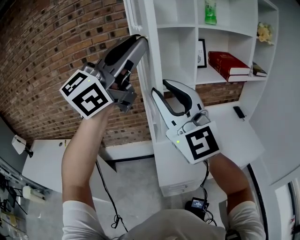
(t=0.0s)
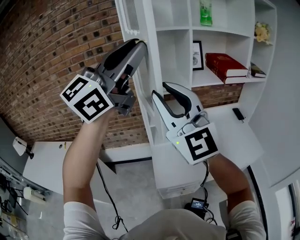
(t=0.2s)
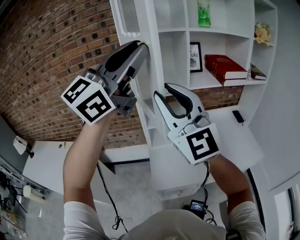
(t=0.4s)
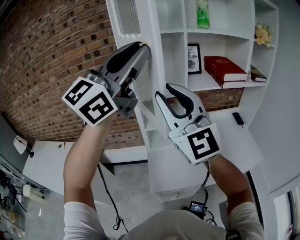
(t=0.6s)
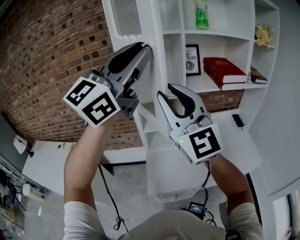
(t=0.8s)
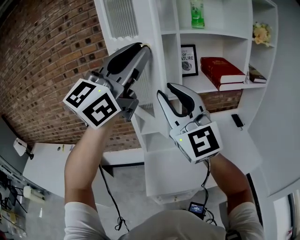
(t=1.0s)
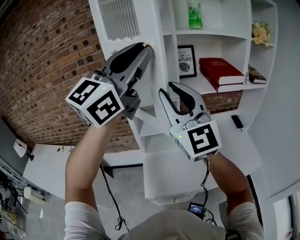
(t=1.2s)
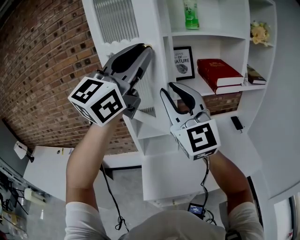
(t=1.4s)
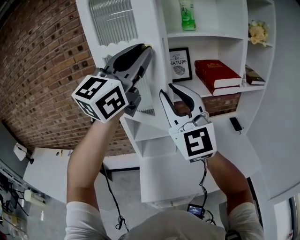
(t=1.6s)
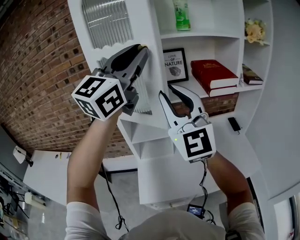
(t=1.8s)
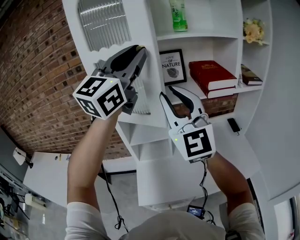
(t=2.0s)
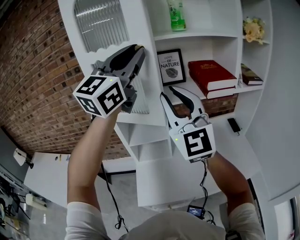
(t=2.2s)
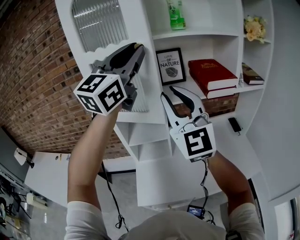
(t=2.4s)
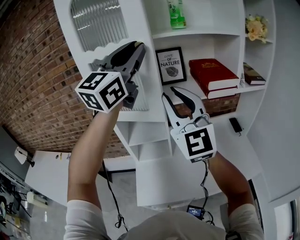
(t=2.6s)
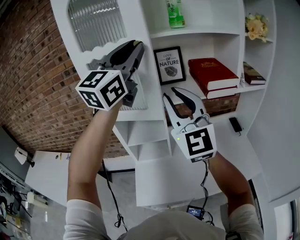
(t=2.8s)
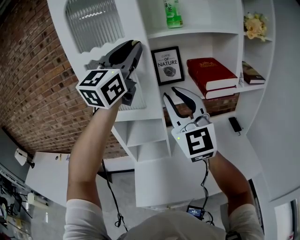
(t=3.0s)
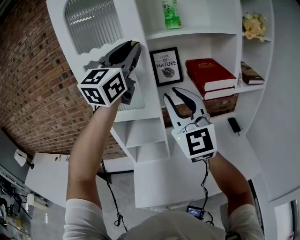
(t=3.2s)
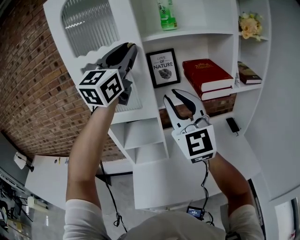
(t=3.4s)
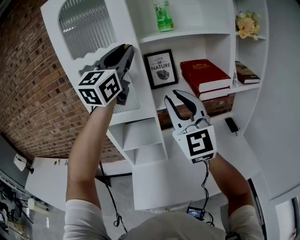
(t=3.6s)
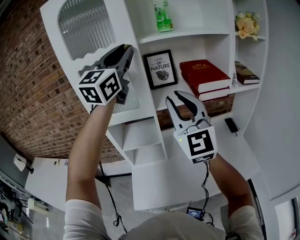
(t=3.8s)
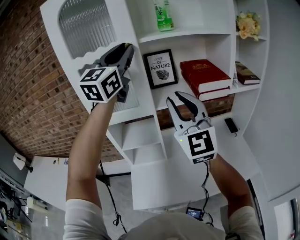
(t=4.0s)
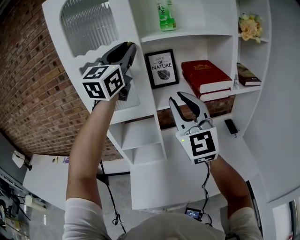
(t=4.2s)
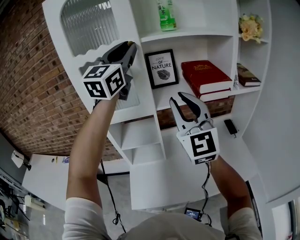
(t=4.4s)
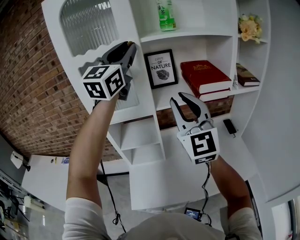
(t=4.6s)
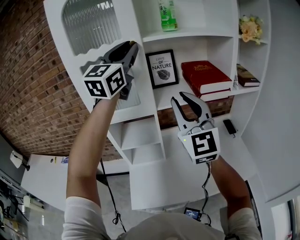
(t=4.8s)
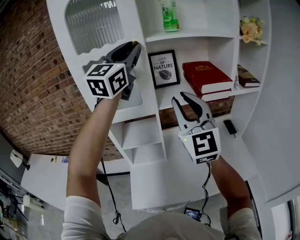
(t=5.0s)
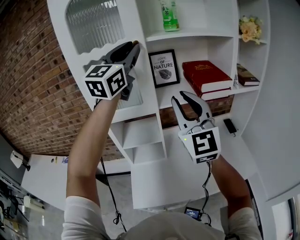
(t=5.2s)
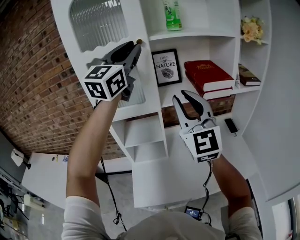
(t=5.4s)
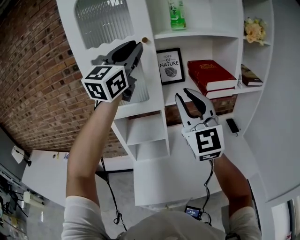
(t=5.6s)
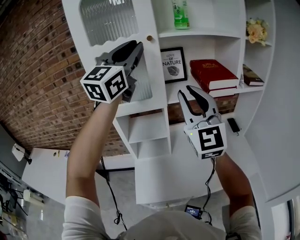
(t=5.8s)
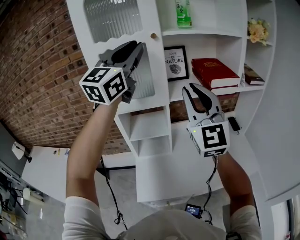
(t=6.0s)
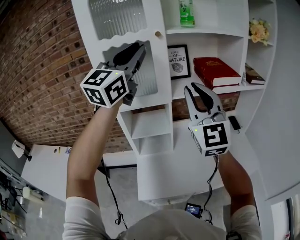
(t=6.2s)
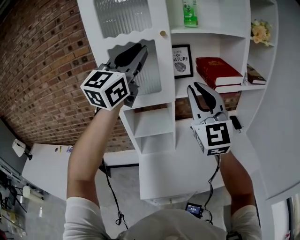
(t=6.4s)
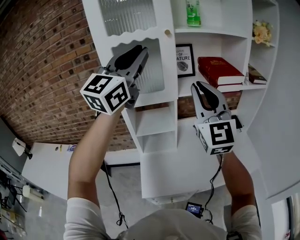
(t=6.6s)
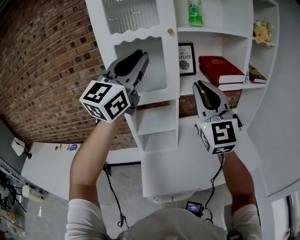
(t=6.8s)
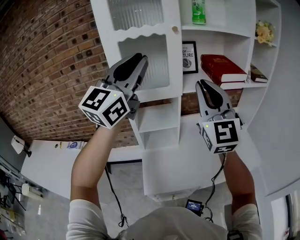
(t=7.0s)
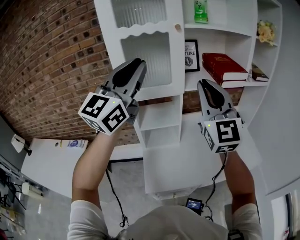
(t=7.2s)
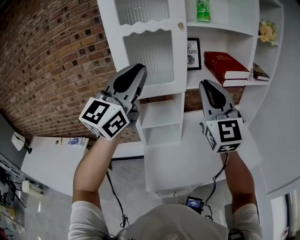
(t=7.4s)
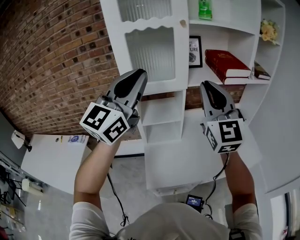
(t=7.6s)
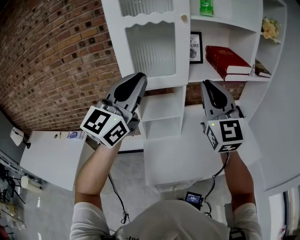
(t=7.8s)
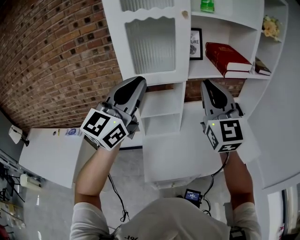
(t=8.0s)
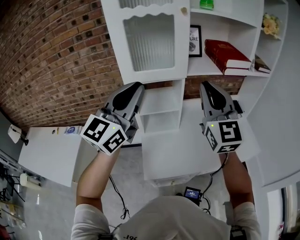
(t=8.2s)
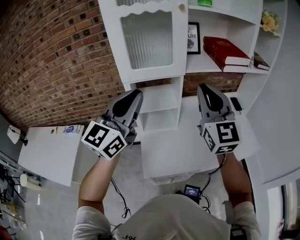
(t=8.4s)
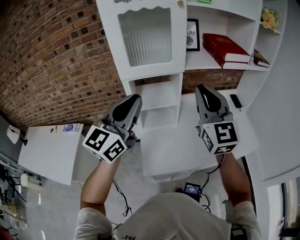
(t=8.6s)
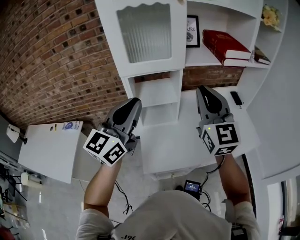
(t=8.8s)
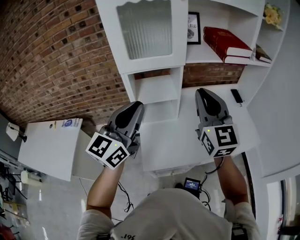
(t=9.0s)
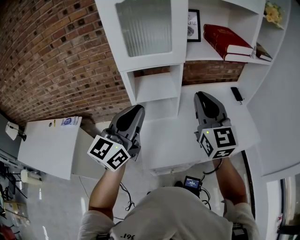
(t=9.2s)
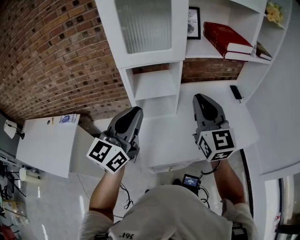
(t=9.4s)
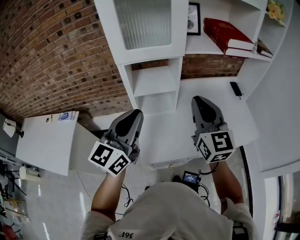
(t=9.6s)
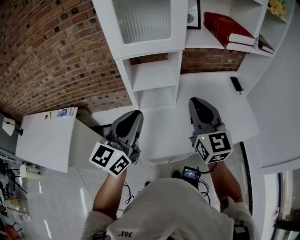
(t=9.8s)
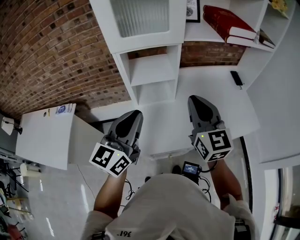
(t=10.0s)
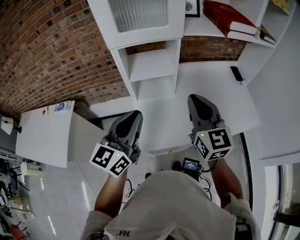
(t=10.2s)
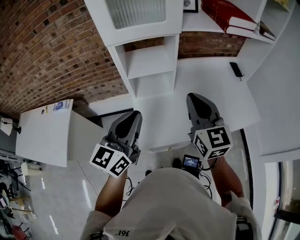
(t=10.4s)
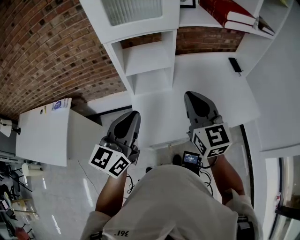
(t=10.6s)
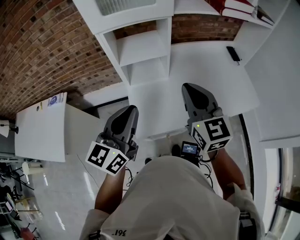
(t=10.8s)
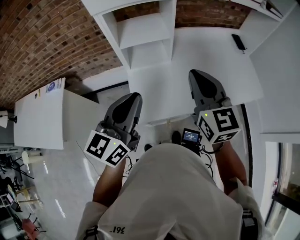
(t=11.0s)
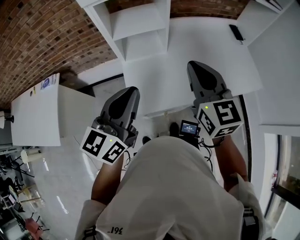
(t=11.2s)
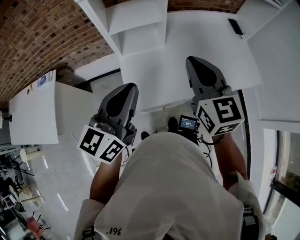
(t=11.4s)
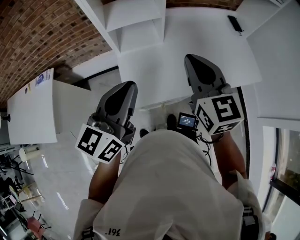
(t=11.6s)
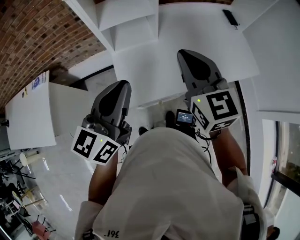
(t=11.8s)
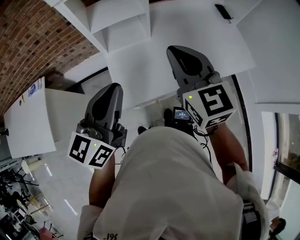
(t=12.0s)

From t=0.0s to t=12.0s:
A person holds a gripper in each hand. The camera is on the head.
From t=0.0s to t=1.6s: The grippers both shift to the right and forward by roughly 20 cm.
From t=1.6s to t=3.0s: The right gripper goes some 10 cm forward and to the right, while the left gripper moves forward, some 10 cm.
From t=3.0s to t=4.4s: The left gripper shifts about 5 cm forward.
From t=4.4s to t=6.0s: The left gripper moves backward, some 10 cm.
From t=6.0s to t=7.6s: The left gripper travels backward, downward and to the left by some 20 cm. Meanwhile the right gripper changes place by roughly 5 cm.
From t=7.6s to t=9.0s: The right gripper heads downward, covering approximately 10 cm. The left gripper is displaced downward by approximately 15 cm.
From t=9.0s to t=10.4s: The grippers both shift downward by approximately 10 cm.
From t=10.4s to t=12.0s: The left gripper shifts by roughly 5 cm.

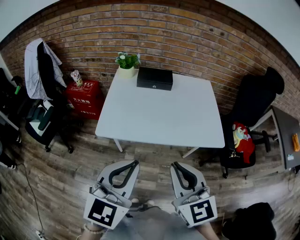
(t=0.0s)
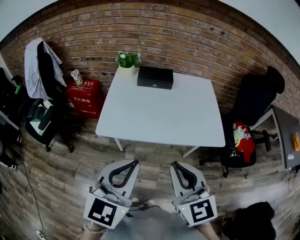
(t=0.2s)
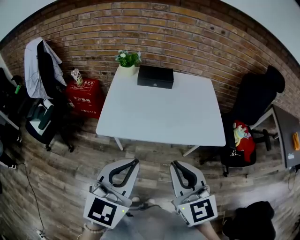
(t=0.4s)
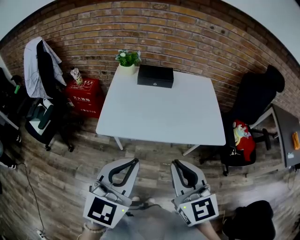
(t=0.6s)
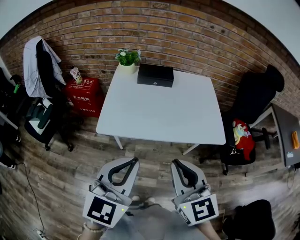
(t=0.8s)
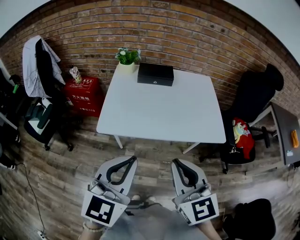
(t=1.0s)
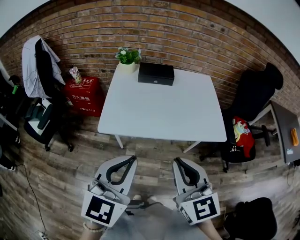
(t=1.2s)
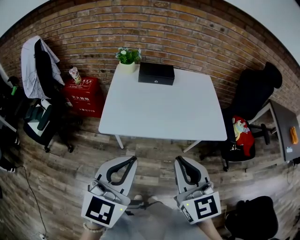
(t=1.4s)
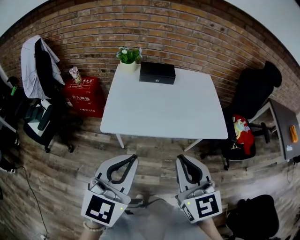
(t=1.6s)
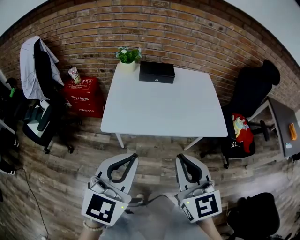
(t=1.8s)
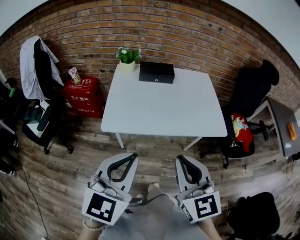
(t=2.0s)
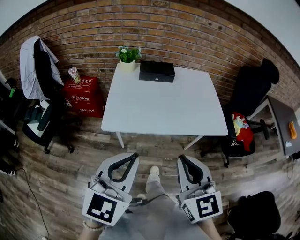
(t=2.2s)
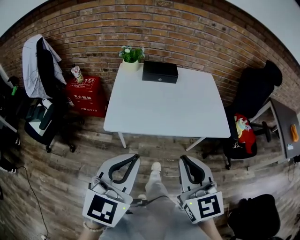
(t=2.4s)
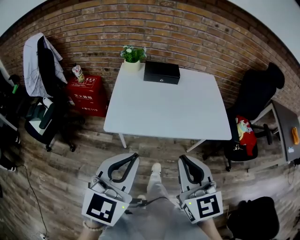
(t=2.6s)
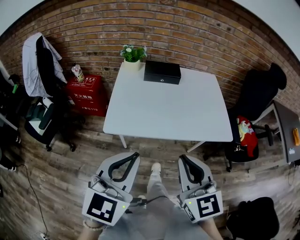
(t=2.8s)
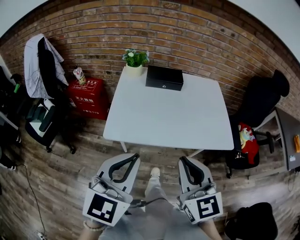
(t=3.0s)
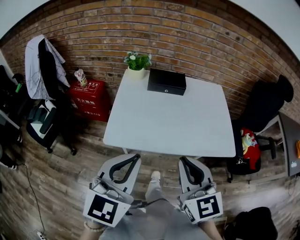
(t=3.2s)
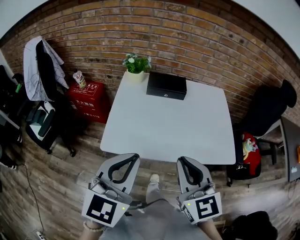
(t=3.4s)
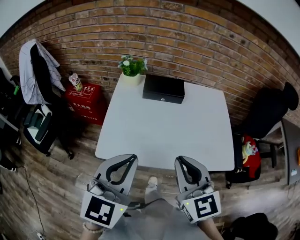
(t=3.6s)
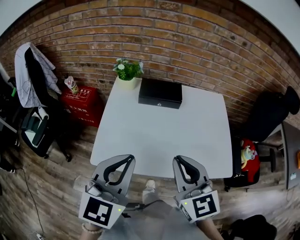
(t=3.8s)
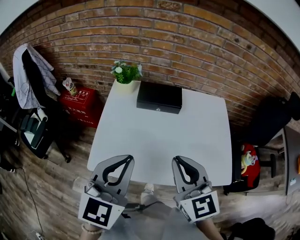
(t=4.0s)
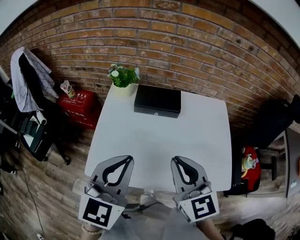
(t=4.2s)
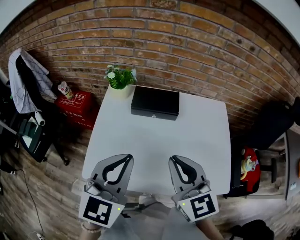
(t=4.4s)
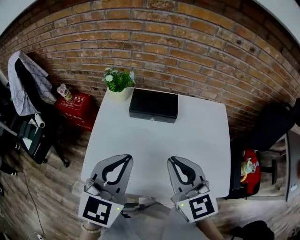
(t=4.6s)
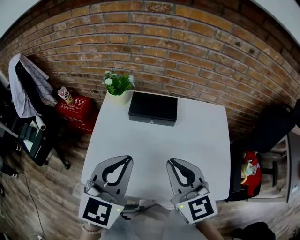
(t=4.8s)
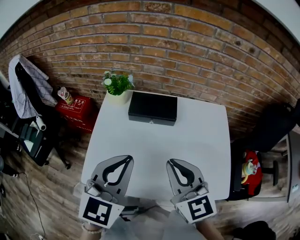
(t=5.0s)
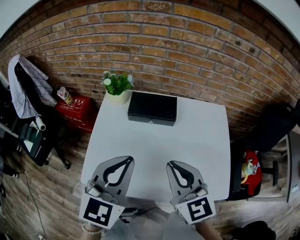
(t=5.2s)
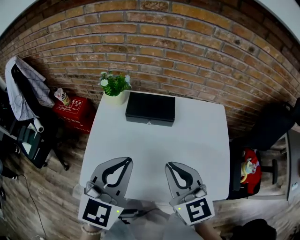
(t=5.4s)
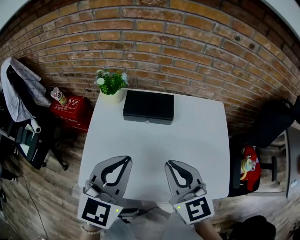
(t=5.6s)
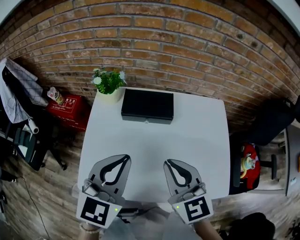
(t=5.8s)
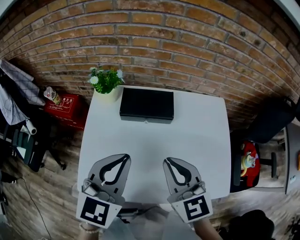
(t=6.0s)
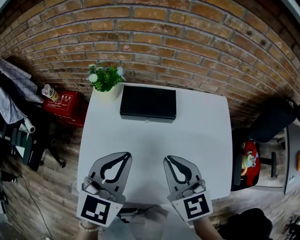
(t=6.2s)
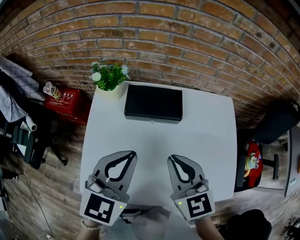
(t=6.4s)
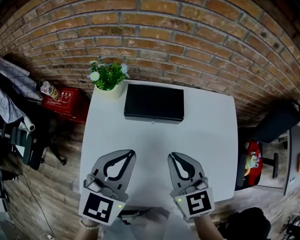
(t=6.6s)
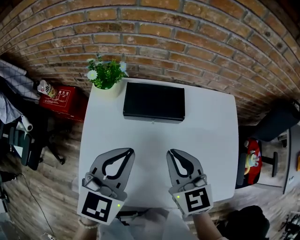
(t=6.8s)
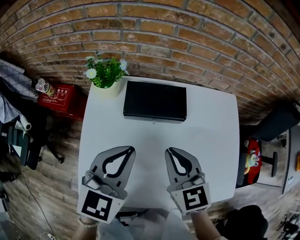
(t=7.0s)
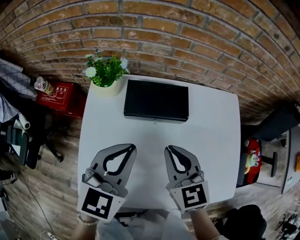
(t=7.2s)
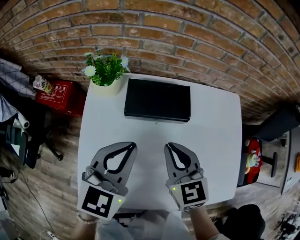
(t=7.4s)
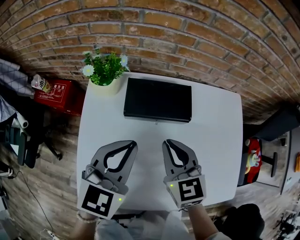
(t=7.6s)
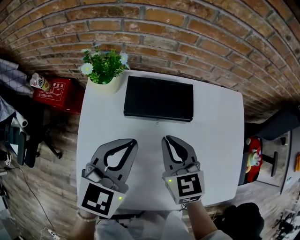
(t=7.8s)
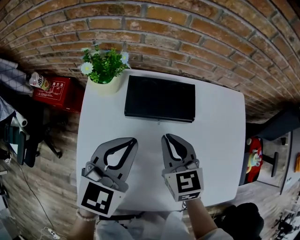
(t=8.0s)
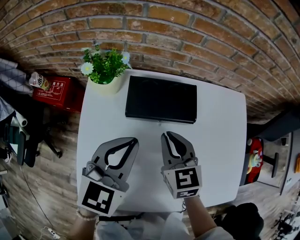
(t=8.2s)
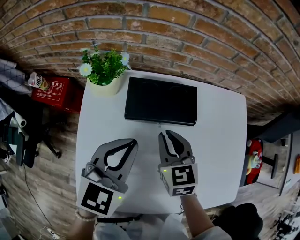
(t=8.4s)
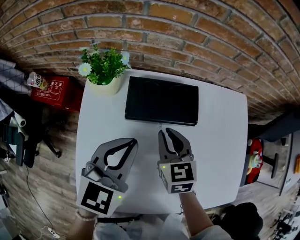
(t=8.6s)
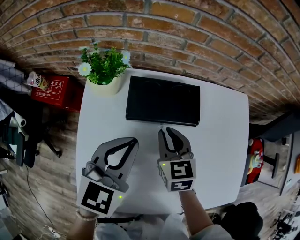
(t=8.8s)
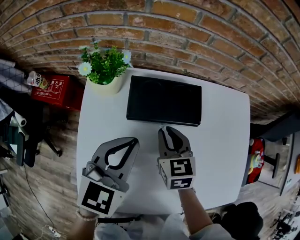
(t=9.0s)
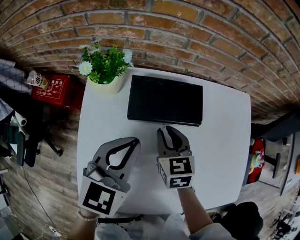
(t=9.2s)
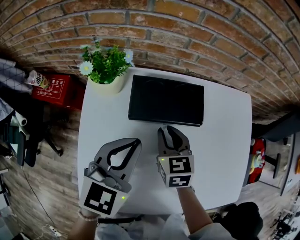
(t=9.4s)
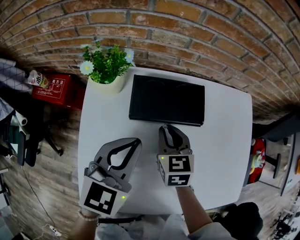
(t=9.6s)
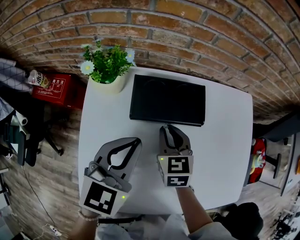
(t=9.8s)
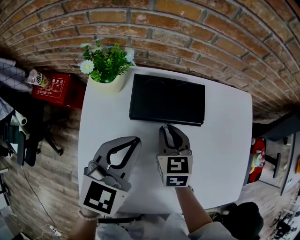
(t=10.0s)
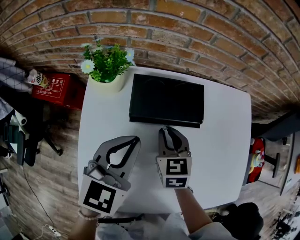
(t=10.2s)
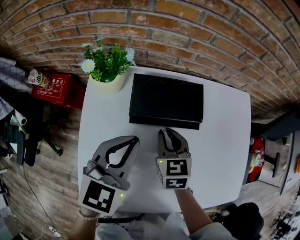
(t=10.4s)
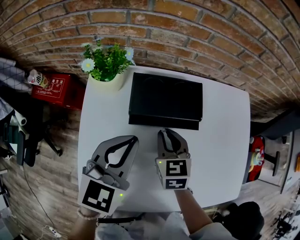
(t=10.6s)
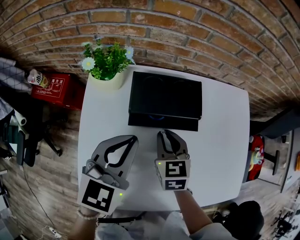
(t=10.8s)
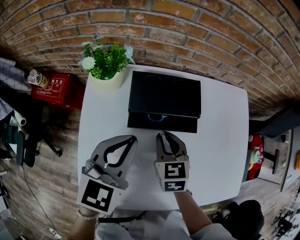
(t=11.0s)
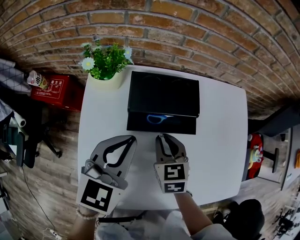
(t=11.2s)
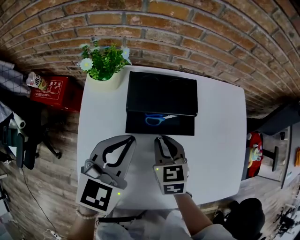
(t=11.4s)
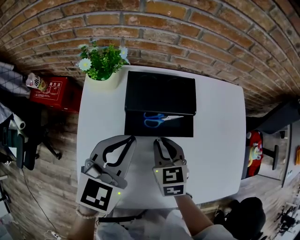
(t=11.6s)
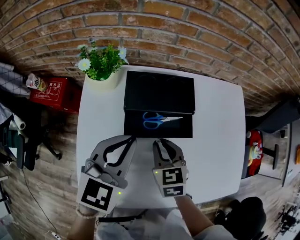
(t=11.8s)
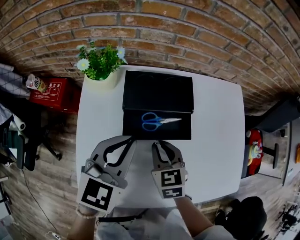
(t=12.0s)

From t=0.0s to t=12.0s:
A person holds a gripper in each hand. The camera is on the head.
From t=0.0s to t=1.6s: The left gripper moves to the left, approximately 5 cm.
From t=1.6s to t=3.0s: Both grippers move forward, some 5 cm.
From t=3.0s to t=4.4s: Both grippers travel together forward, some 30 cm.
From t=4.4s to t=6.0s: The grippers both shift forward by approximately 10 cm.
From t=6.0s to t=7.6s: The right gripper is displaced forward, downward and to the left by approximately 20 cm, while the left gripper travels forward and downward by some 15 cm.
From t=7.6s to t=9.0s: The right gripper shifts approximately 10 cm downward and forward, while the left gripper shifts by approximately 5 cm.
From t=9.0s to t=10.4s: The grippers move only a little.
From t=10.4s to t=12.0s: The right gripper is displaced backward by some 10 cm.
